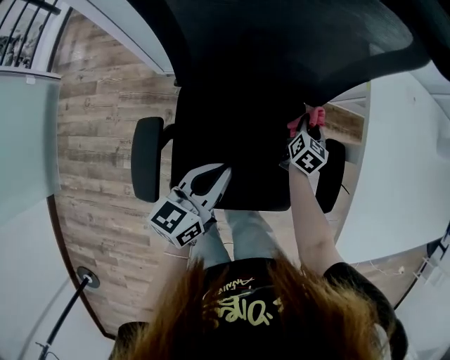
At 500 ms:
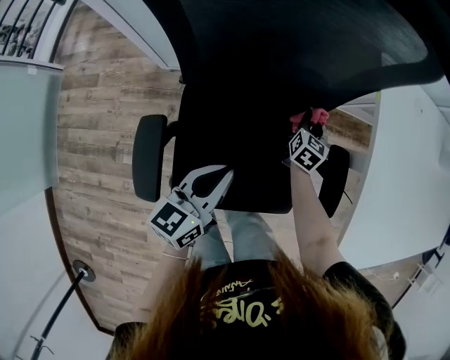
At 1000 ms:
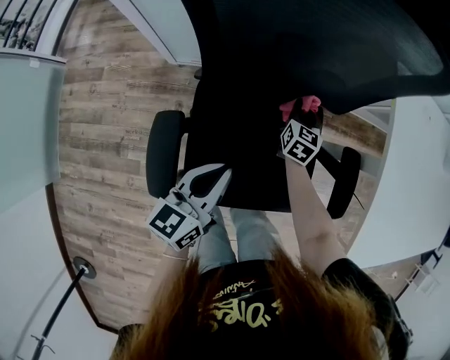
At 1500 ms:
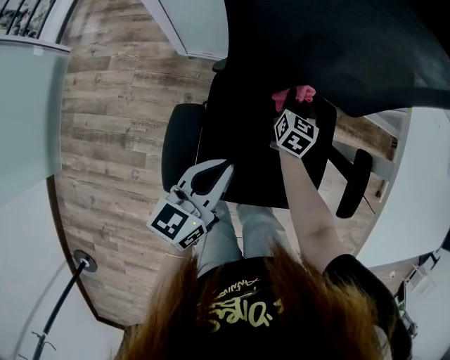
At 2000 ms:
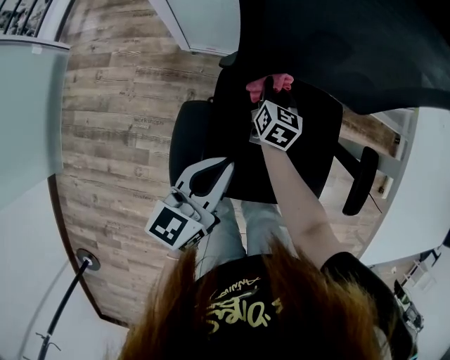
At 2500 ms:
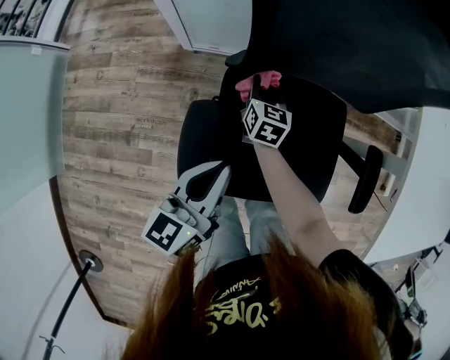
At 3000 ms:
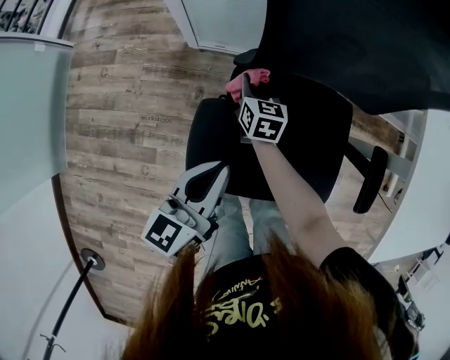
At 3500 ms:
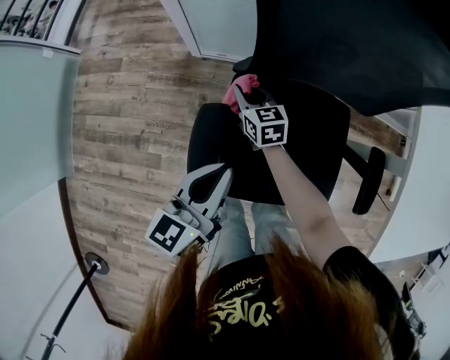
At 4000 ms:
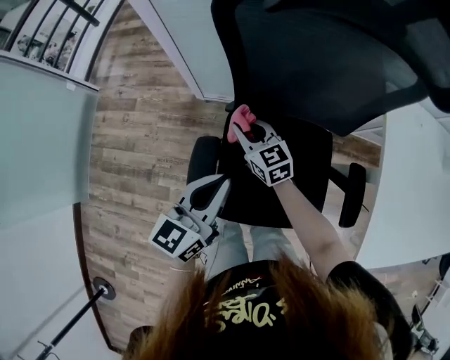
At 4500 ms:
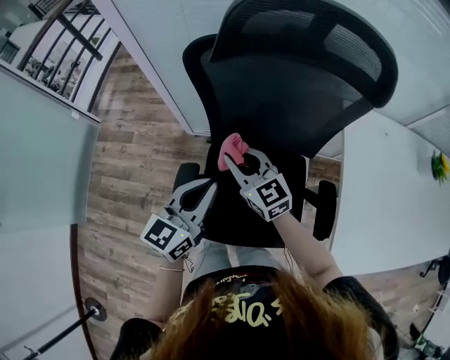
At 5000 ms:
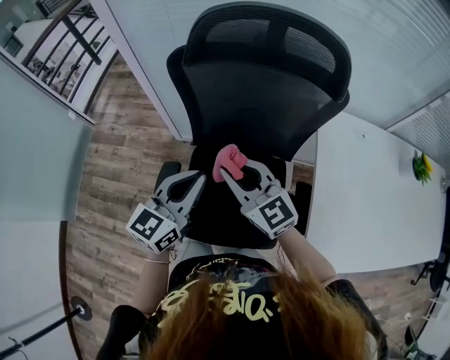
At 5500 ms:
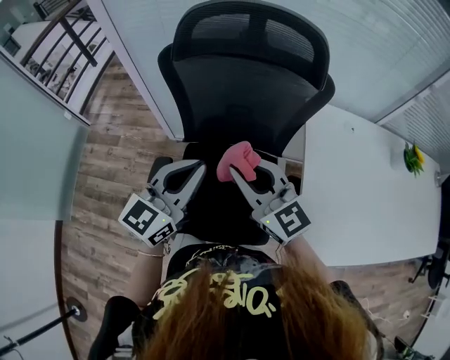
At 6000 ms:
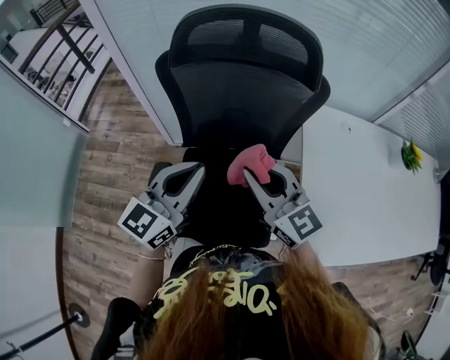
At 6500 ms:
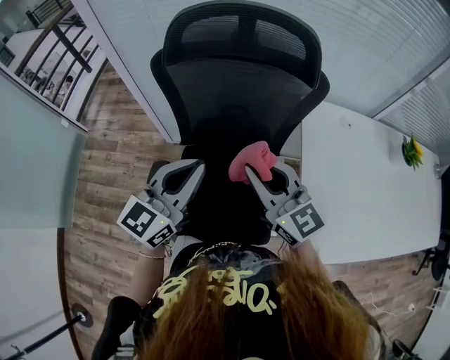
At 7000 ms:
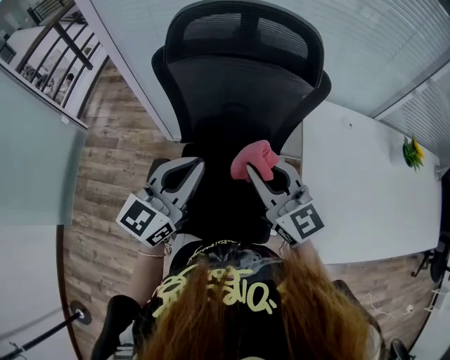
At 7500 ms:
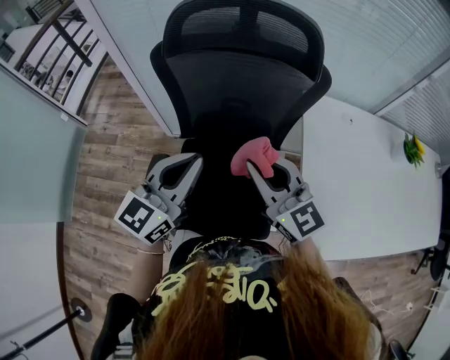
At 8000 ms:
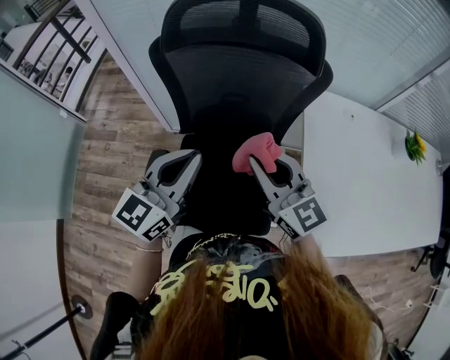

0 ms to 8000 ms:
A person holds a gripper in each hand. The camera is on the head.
0 ms to 2000 ms: The right gripper moves to the left, roughly 30 cm; the left gripper is displaced to the left and backward by roughly 15 cm.
2000 ms to 4000 ms: The right gripper moves upward, to the left and backward, some 20 cm, and turns by approximately 40 degrees. The left gripper heads upward, covering some 10 cm.
4000 ms to 6000 ms: The left gripper goes approximately 20 cm upward and to the right, and turns by about 20 degrees, while the right gripper goes roughly 40 cm upward, to the right and backward, and rotates roughly 20 degrees.
6000 ms to 8000 ms: There are only small adjustments of the grippers.

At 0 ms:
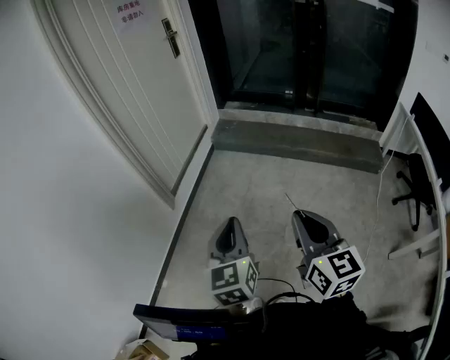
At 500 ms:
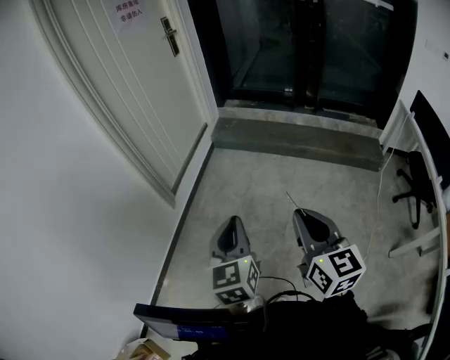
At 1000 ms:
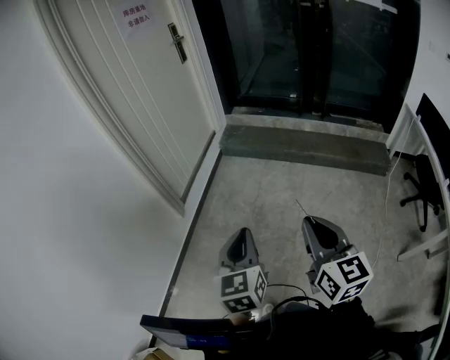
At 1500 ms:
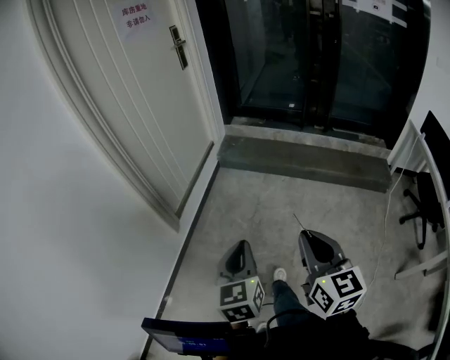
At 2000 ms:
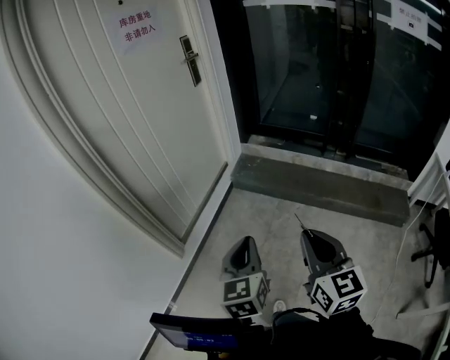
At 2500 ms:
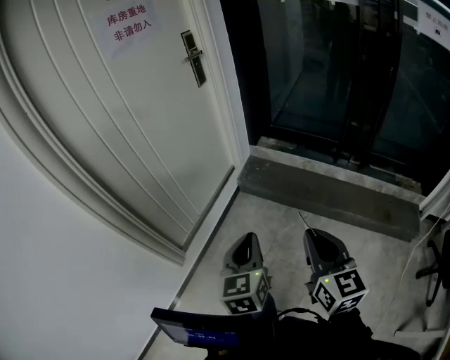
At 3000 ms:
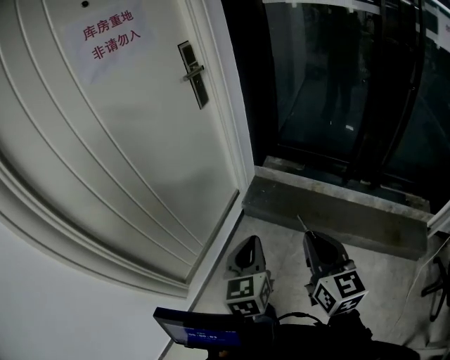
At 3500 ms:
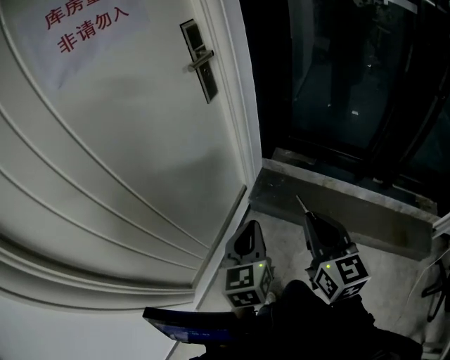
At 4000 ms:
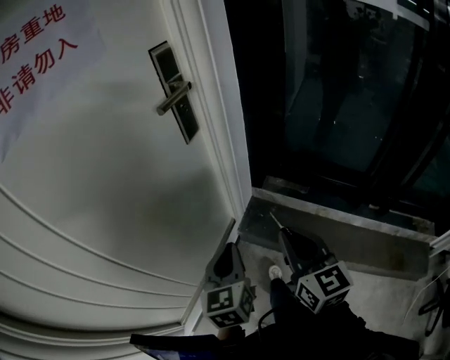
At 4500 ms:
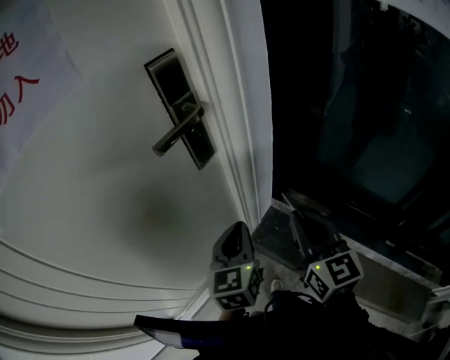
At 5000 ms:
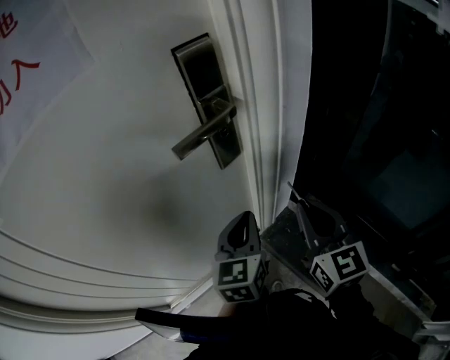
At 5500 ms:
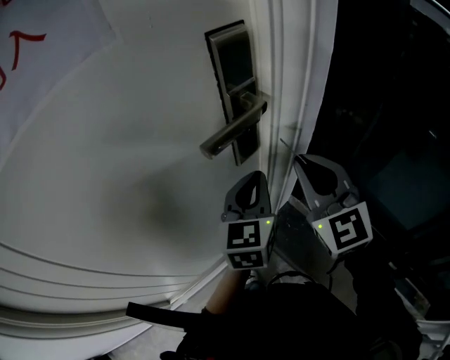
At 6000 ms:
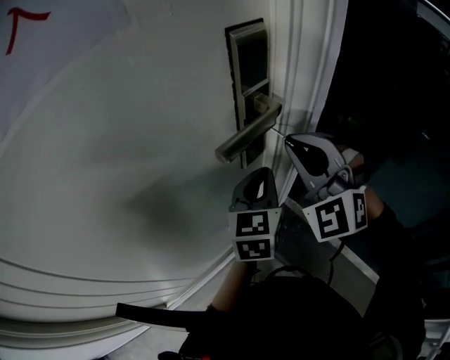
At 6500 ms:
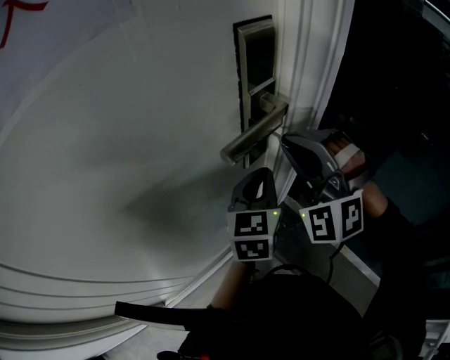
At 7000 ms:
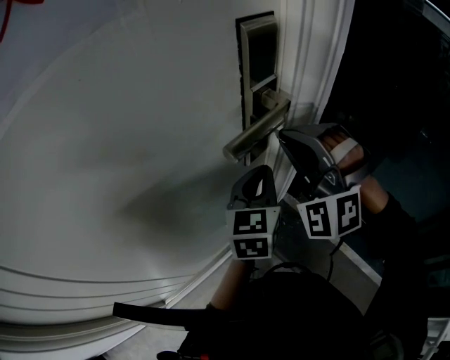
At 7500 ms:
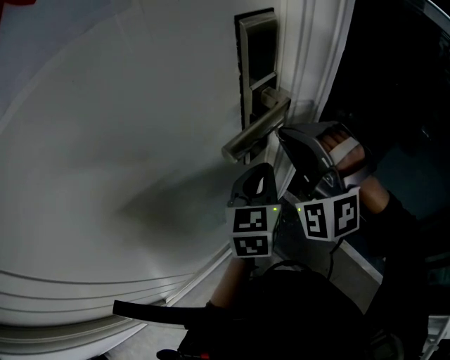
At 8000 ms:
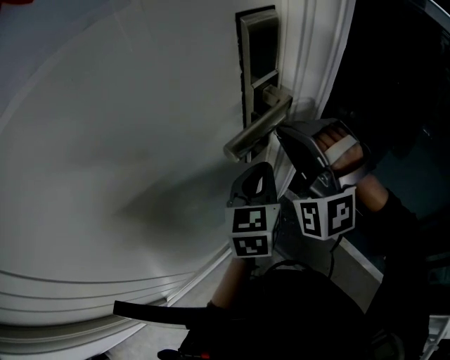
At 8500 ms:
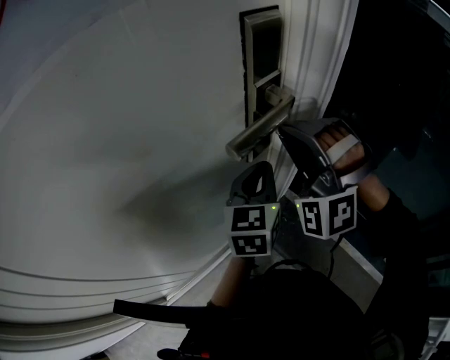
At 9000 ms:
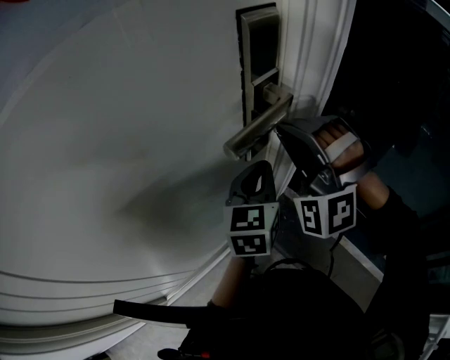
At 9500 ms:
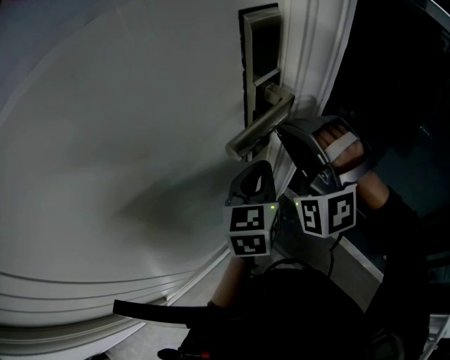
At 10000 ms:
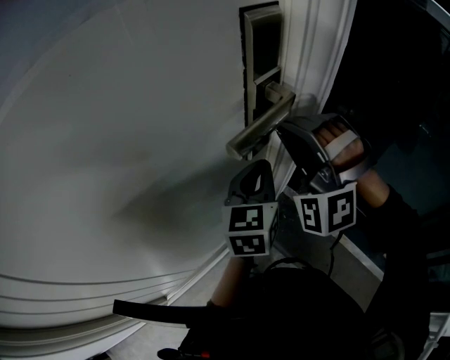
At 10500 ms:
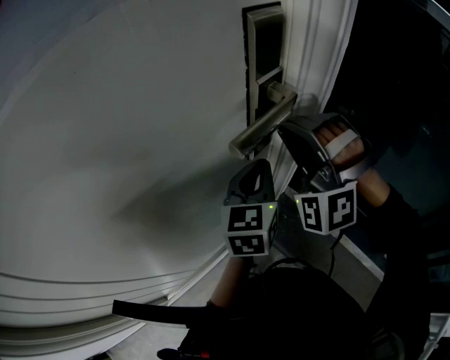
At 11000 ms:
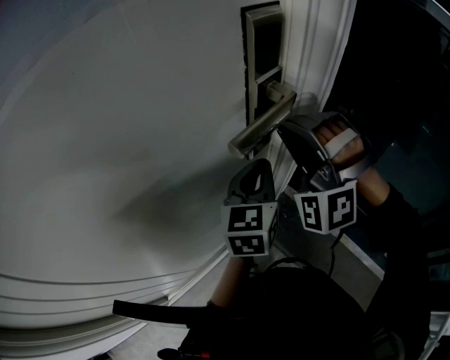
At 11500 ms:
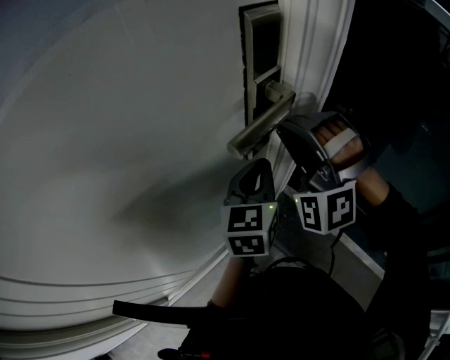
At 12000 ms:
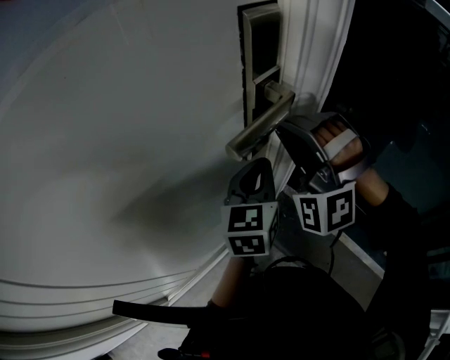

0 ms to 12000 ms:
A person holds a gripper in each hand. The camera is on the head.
0 ms to 2000 ms: The two grippers go some 35 cm forward.
2000 ms to 4000 ms: Both grippers are carried forward, some 70 cm.
4000 ms to 6000 ms: Both grippers move forward, about 35 cm. The right gripper twists about 70 degrees counterclockwise, seen from behind.
6000 ms to 8000 ms: The right gripper changes its angle by about 30 degrees.
8000 ms to 12000 ms: The two grippers keep their place.

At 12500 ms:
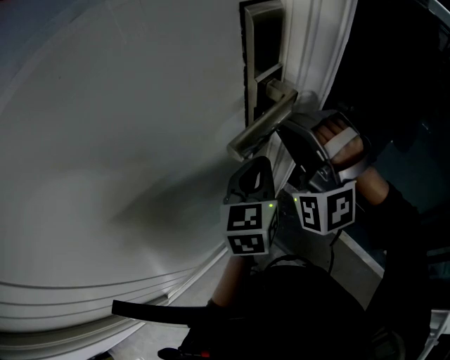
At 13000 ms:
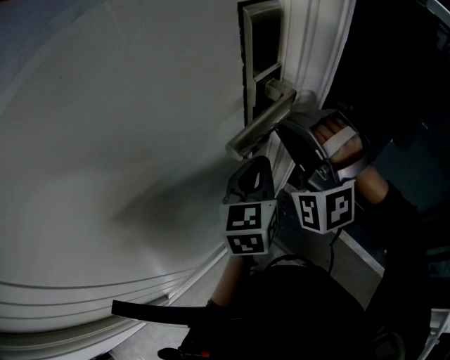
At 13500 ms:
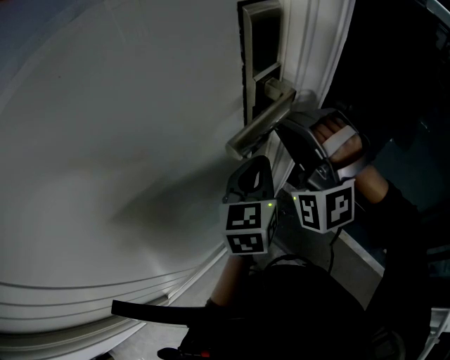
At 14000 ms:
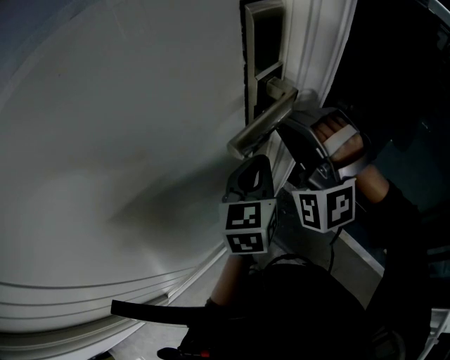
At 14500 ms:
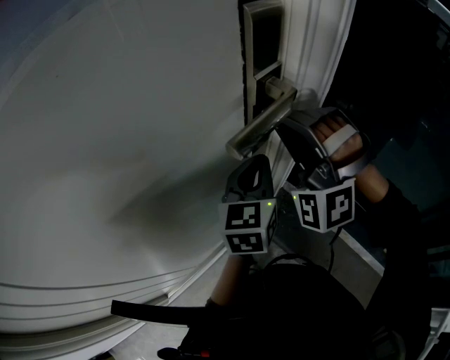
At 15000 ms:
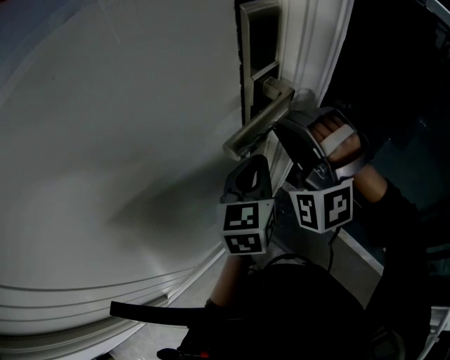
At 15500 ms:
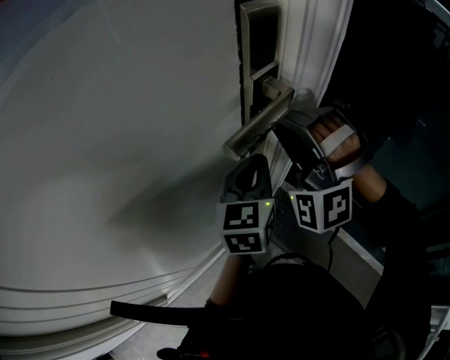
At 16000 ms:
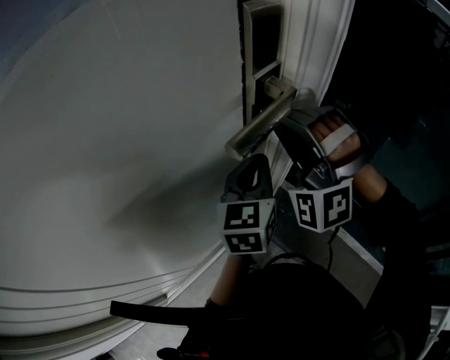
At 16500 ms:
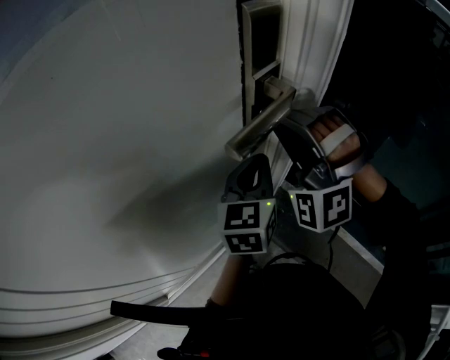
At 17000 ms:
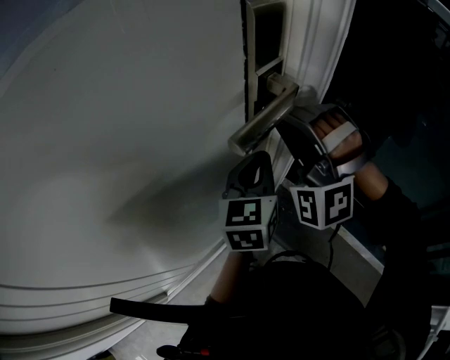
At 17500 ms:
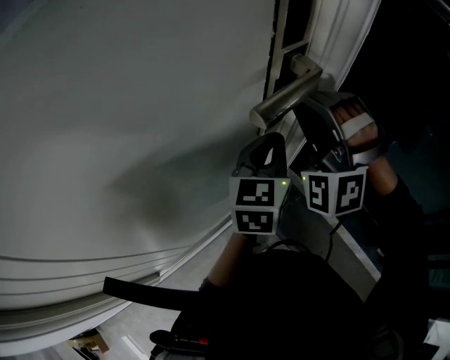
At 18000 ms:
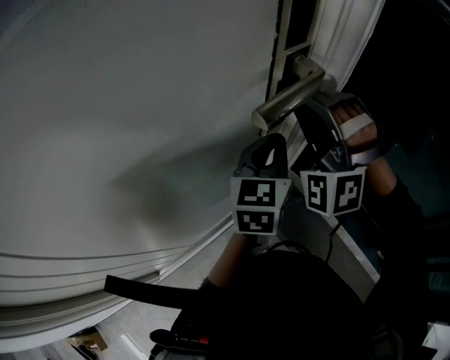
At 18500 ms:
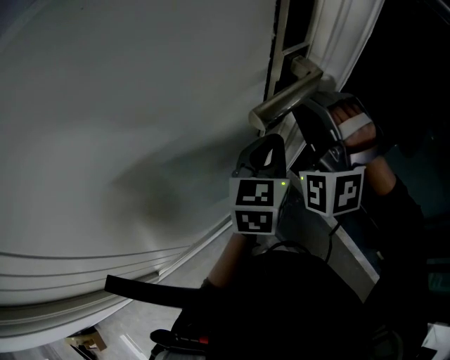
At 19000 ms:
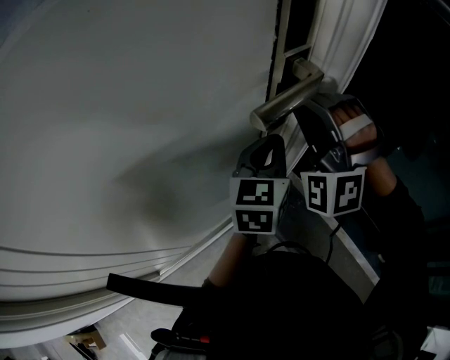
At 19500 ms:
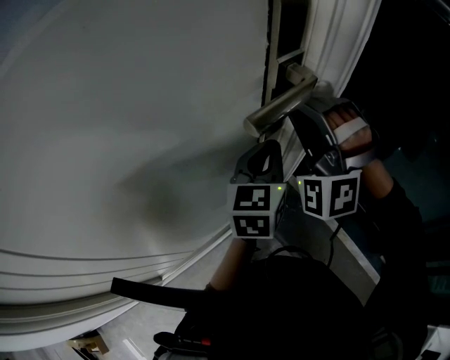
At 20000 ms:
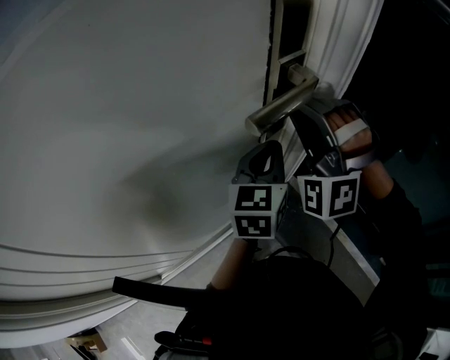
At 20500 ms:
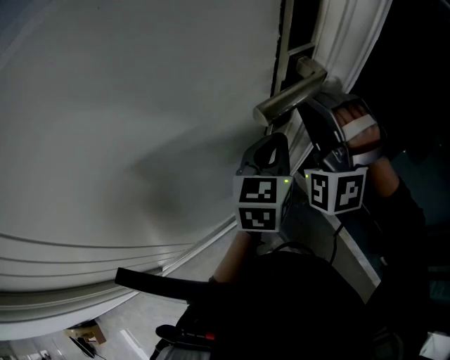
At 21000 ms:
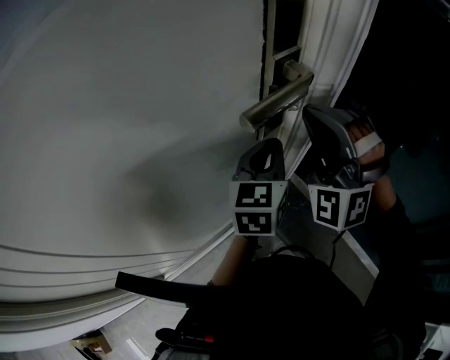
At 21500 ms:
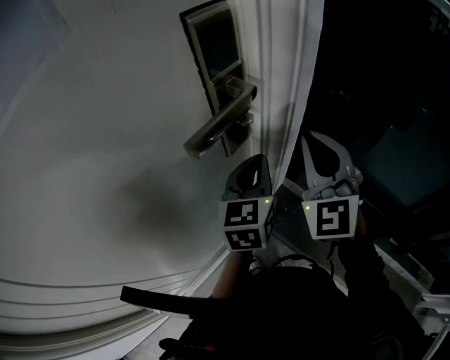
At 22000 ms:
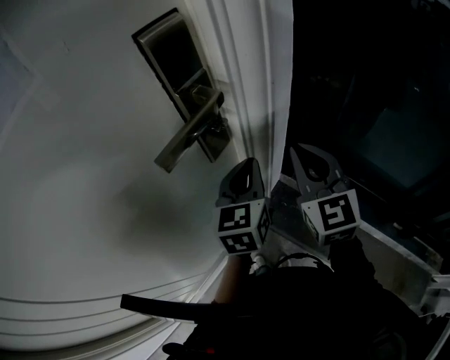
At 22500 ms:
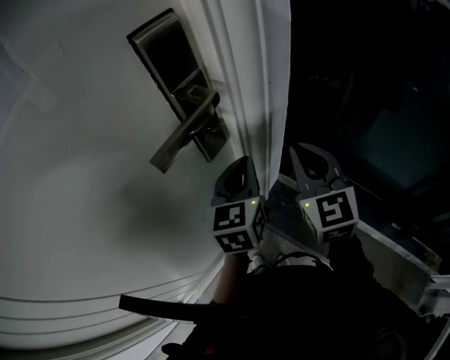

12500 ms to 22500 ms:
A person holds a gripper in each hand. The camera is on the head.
12500 ms to 20500 ms: The two grippers keep their place.
20500 ms to 22500 ms: The right gripper is displaced to the right and downward by about 15 cm, and twists roughly 80 degrees clockwise, seen from behind. The left gripper heads to the right, covering about 5 cm.
